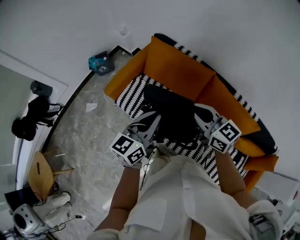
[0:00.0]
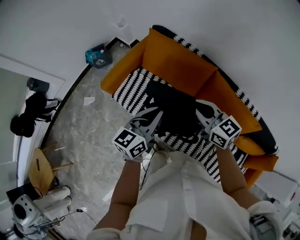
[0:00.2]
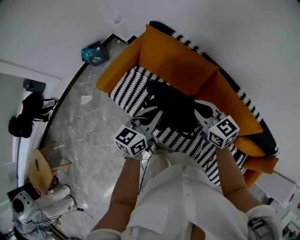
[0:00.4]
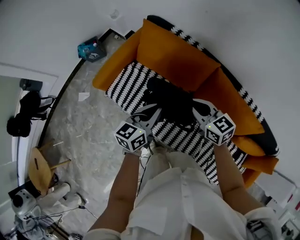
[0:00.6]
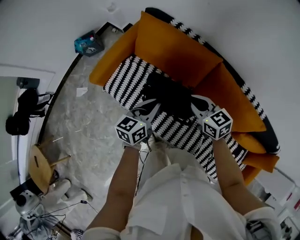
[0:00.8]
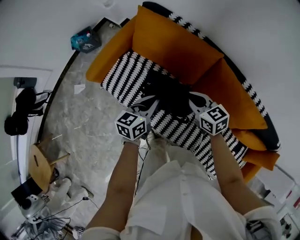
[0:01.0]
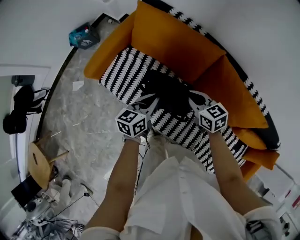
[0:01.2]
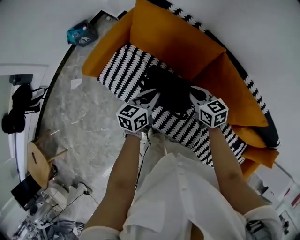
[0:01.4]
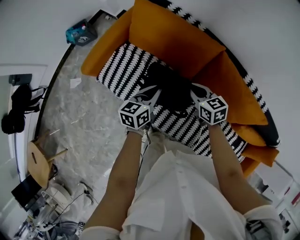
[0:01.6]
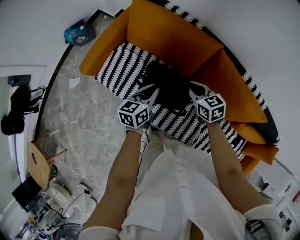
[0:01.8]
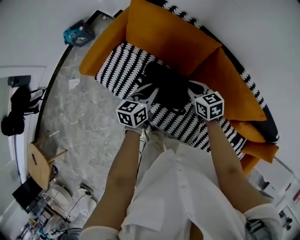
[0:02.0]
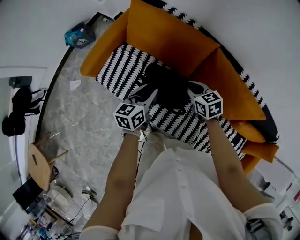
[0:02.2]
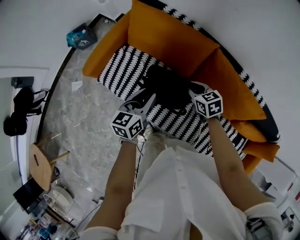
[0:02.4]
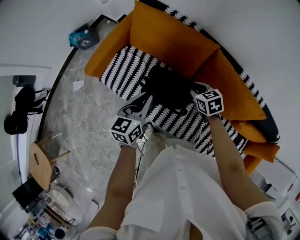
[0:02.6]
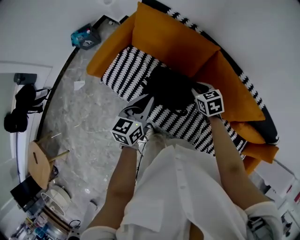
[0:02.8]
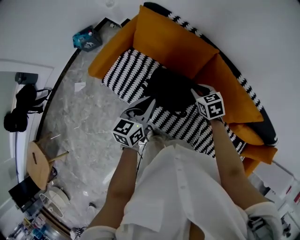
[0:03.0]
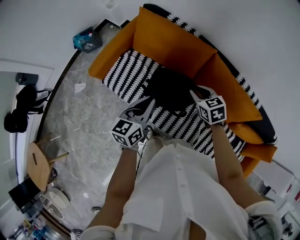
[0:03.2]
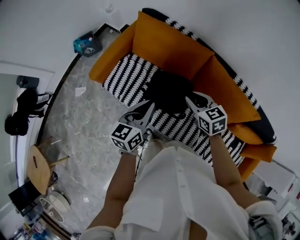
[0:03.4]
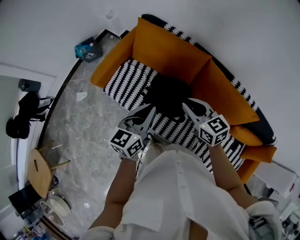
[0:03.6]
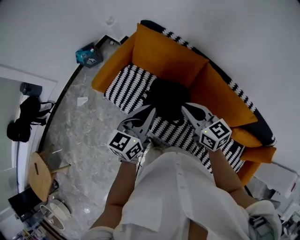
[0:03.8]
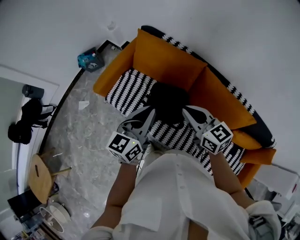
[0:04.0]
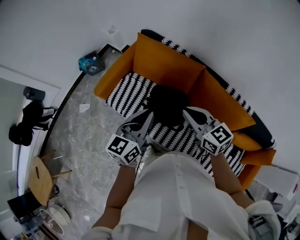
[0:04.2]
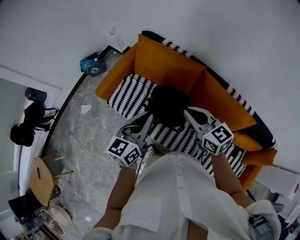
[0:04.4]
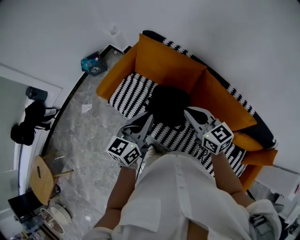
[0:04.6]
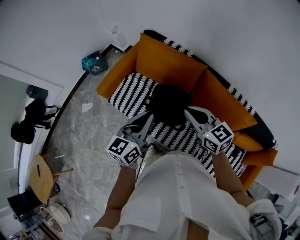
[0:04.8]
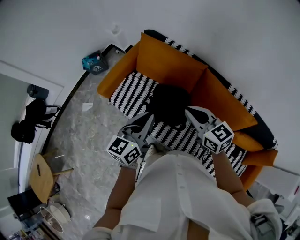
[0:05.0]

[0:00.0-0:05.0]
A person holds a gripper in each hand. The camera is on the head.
0:00.0 to 0:01.6: The grippers both shift downward by roughly 25 cm. The left gripper swivels some 20 degrees, while the right gripper swivels about 30 degrees.
0:01.6 to 0:03.4: The grippers both shift upward and backward by about 15 cm. The left gripper opens and closes again.
0:03.4 to 0:05.0: Both grippers travel together upward, some 10 cm. The right gripper turns by approximately 20 degrees.

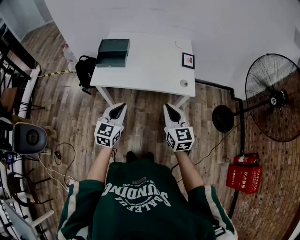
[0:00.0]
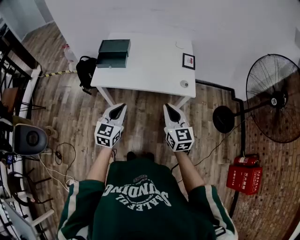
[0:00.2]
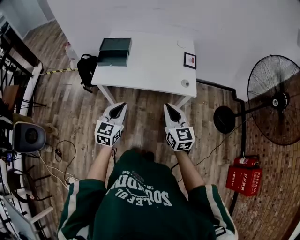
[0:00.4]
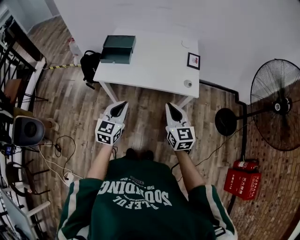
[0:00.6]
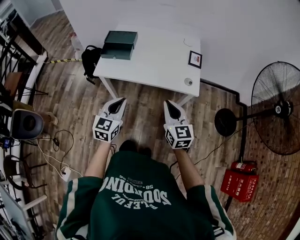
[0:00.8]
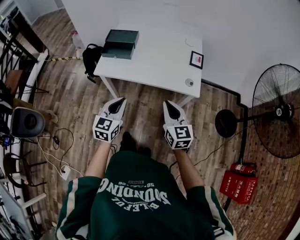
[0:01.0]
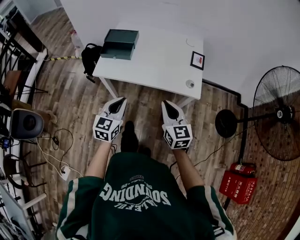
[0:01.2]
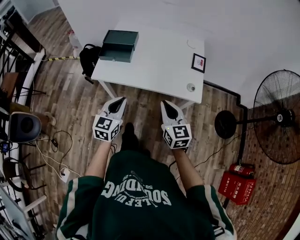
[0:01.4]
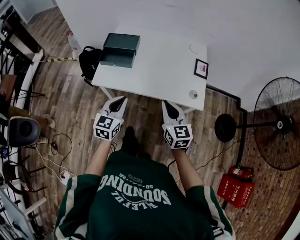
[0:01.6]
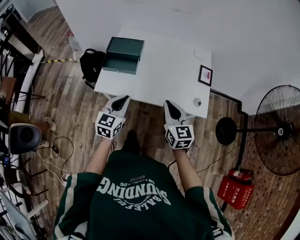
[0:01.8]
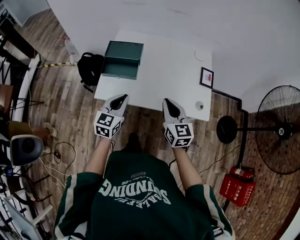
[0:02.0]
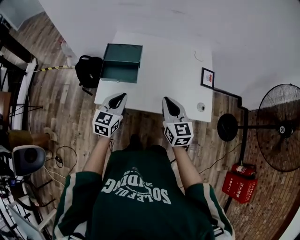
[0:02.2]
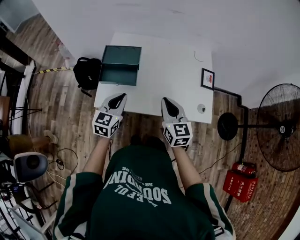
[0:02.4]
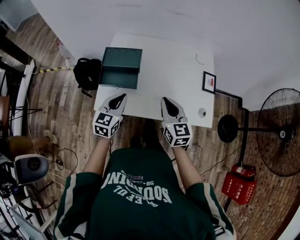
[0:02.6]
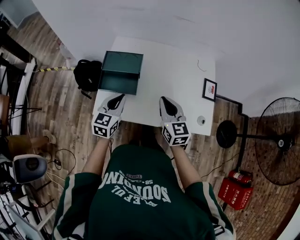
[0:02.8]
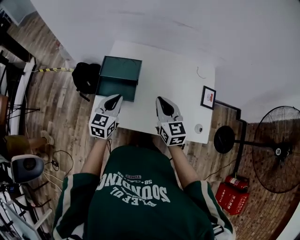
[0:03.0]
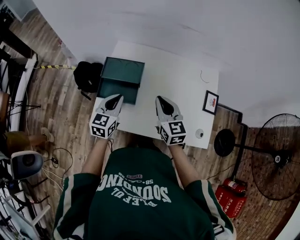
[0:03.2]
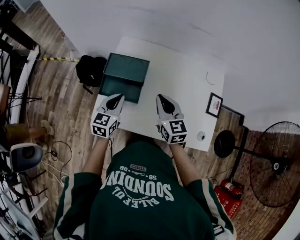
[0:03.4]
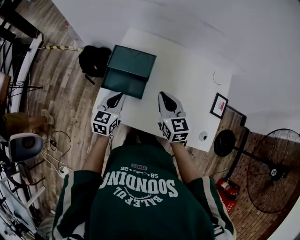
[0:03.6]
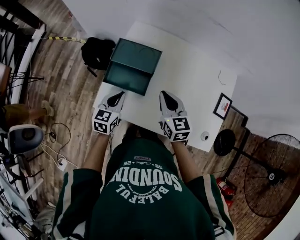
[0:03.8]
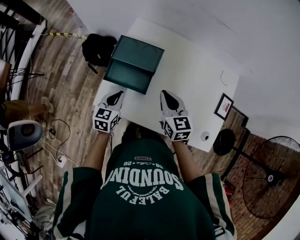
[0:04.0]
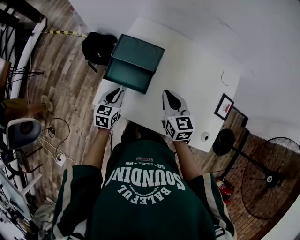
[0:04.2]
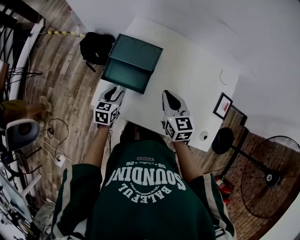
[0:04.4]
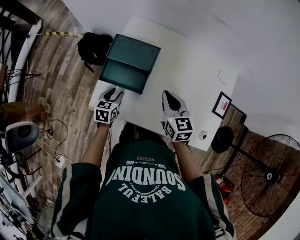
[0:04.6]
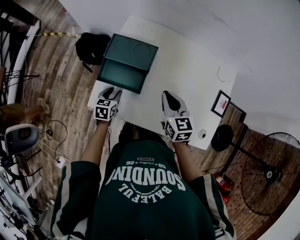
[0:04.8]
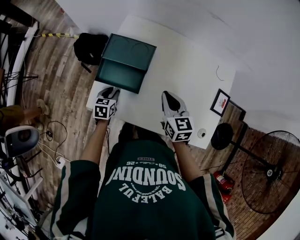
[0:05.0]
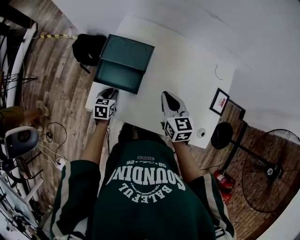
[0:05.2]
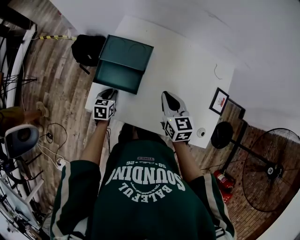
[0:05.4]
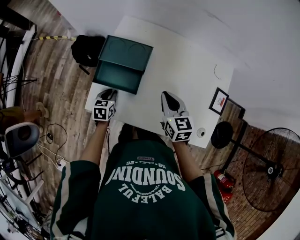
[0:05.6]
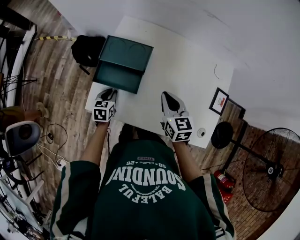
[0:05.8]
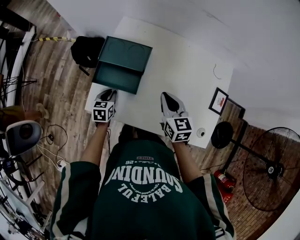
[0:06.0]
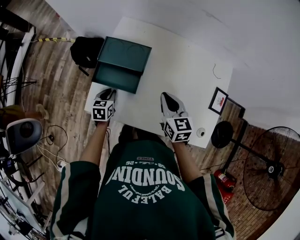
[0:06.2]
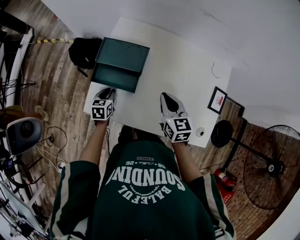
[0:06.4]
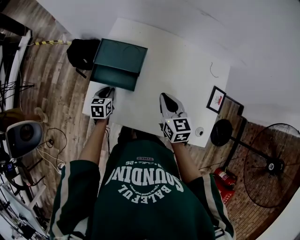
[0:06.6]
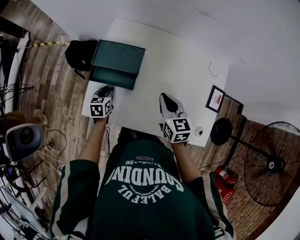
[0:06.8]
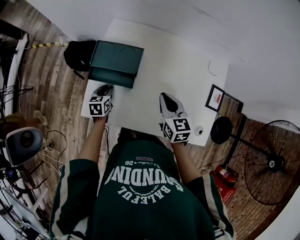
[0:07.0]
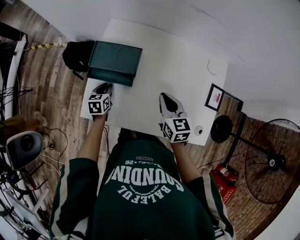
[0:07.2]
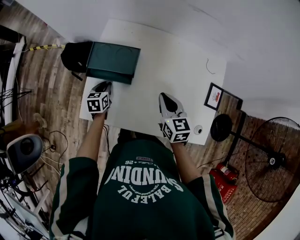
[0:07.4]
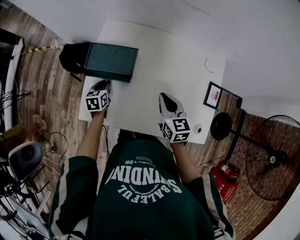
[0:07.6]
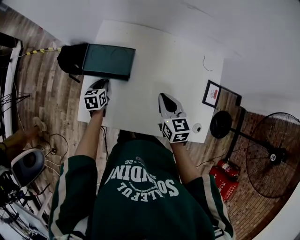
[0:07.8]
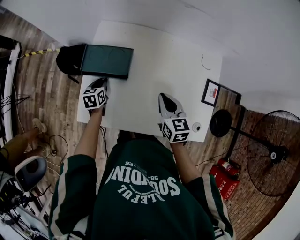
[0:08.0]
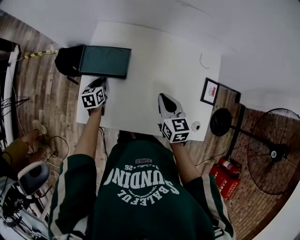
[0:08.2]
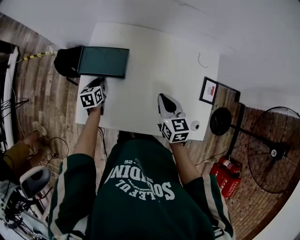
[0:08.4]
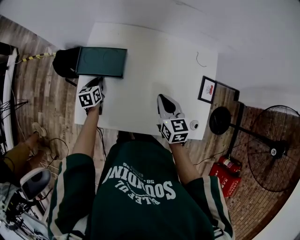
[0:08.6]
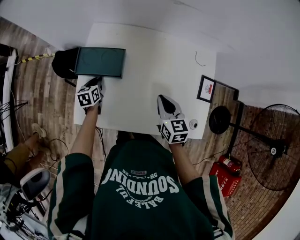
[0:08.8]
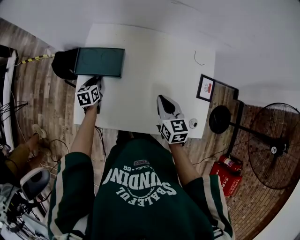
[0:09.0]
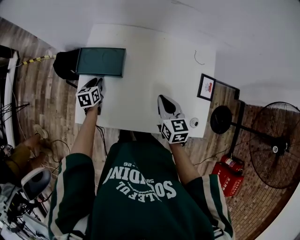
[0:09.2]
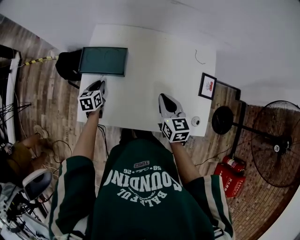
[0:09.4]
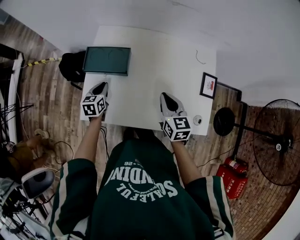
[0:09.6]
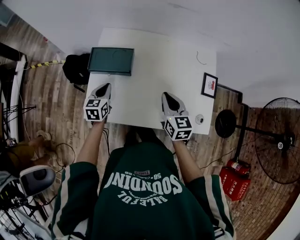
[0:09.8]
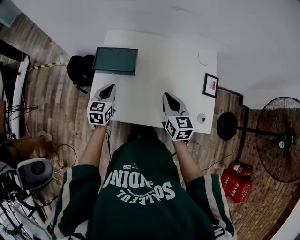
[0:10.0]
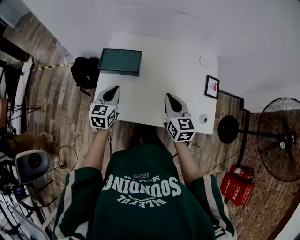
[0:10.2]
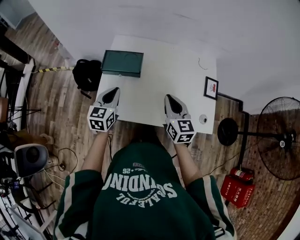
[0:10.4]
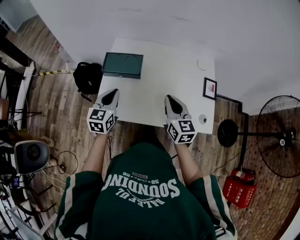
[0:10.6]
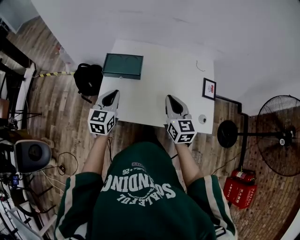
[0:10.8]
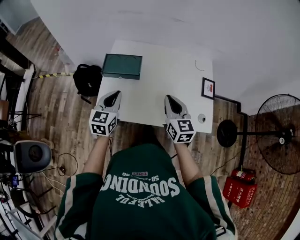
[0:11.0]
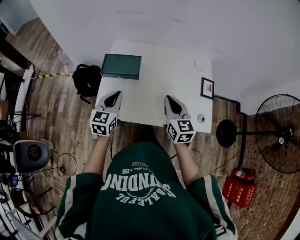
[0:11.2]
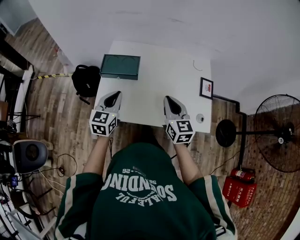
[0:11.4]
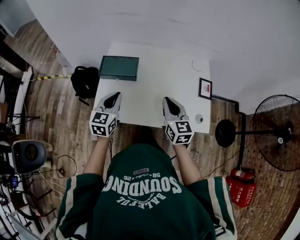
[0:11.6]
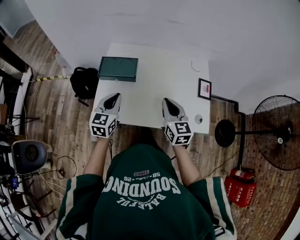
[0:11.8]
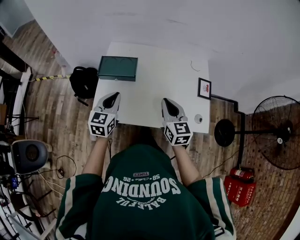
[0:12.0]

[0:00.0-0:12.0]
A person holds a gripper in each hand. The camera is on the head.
0:00.0 to 0:01.6: The two grippers go roughly 10 cm forward.
0:01.6 to 0:03.0: Both grippers travel together forward, about 25 cm.
0:03.0 to 0:04.4: The left gripper is displaced downward by approximately 15 cm, swivels about 30 degrees, and opens its fingers, while the right gripper moves downward and forward, roughly 10 cm.
0:04.4 to 0:06.0: There are only small adjustments of the grippers.
0:06.0 to 0:07.6: The left gripper heads forward, covering approximately 10 cm.
0:07.6 to 0:09.0: The grippers stay close to where they were, moving slightly.
0:09.0 to 0:10.4: The left gripper shifts roughly 25 cm upward and backward, and rotates roughly 30 degrees. The right gripper shifts about 15 cm upward, backward and to the left.
0:10.4 to 0:12.0: There are only small adjustments of the grippers.

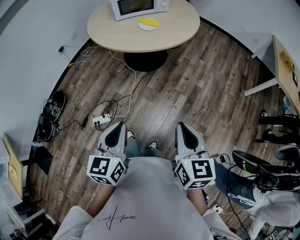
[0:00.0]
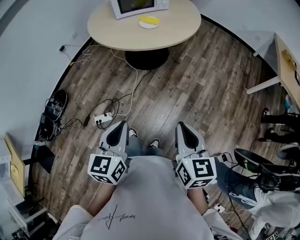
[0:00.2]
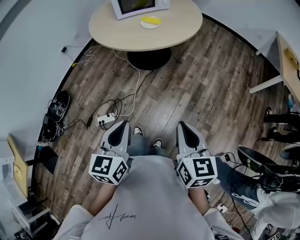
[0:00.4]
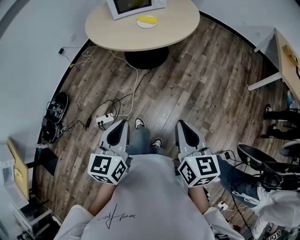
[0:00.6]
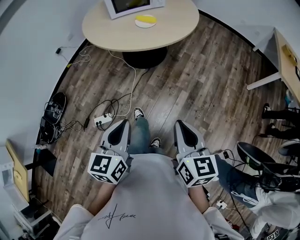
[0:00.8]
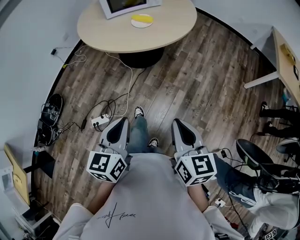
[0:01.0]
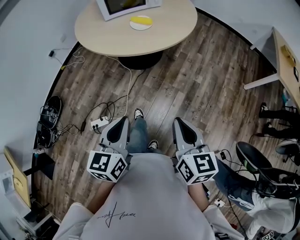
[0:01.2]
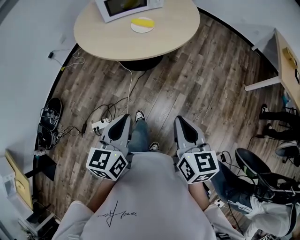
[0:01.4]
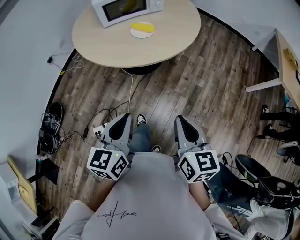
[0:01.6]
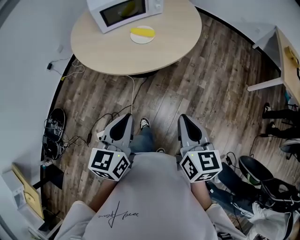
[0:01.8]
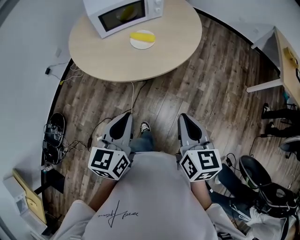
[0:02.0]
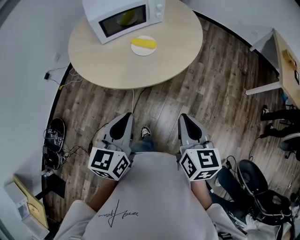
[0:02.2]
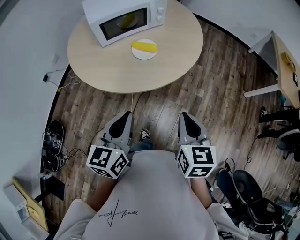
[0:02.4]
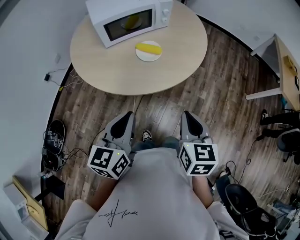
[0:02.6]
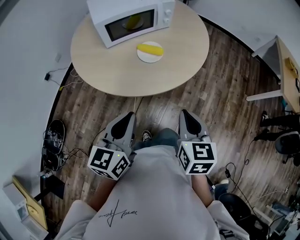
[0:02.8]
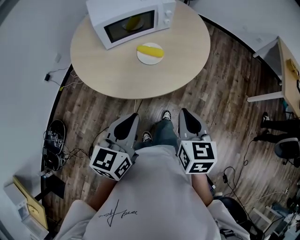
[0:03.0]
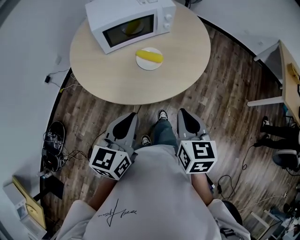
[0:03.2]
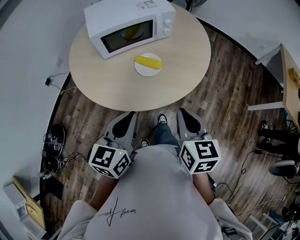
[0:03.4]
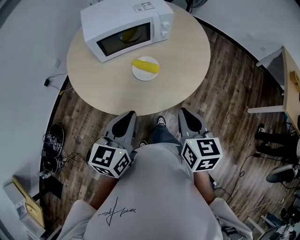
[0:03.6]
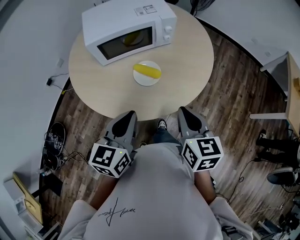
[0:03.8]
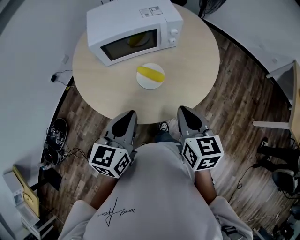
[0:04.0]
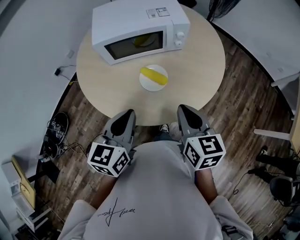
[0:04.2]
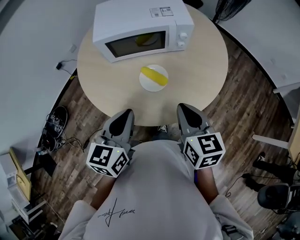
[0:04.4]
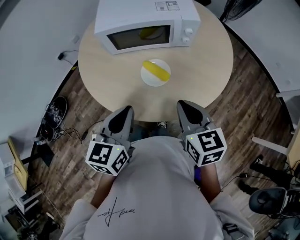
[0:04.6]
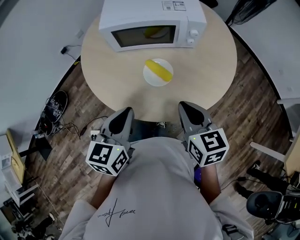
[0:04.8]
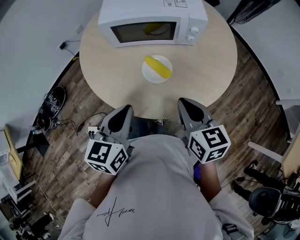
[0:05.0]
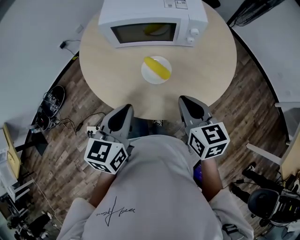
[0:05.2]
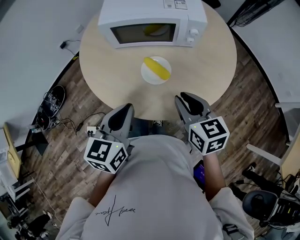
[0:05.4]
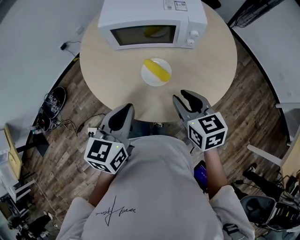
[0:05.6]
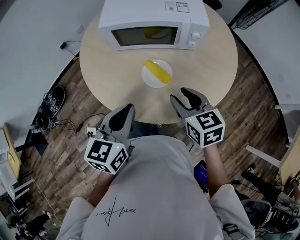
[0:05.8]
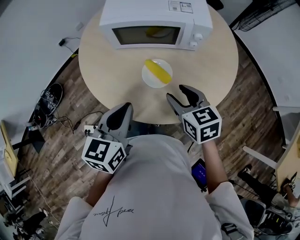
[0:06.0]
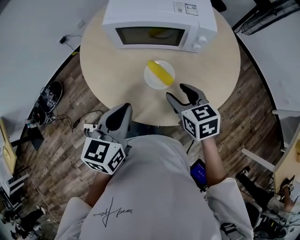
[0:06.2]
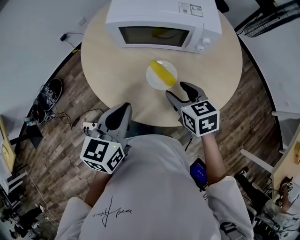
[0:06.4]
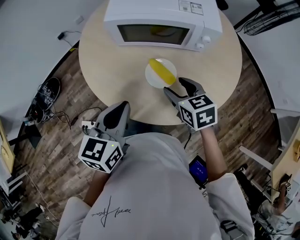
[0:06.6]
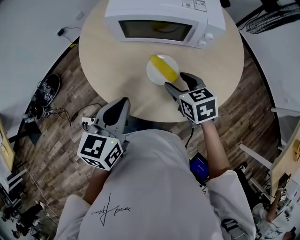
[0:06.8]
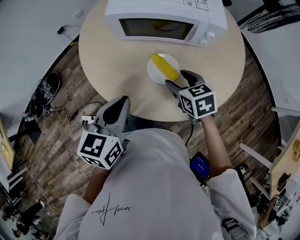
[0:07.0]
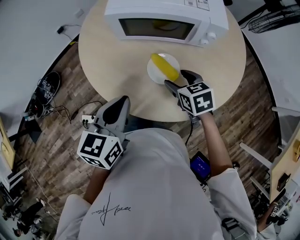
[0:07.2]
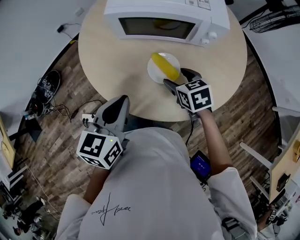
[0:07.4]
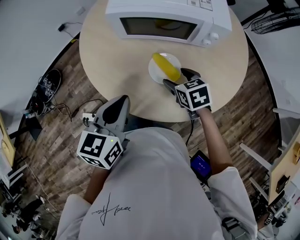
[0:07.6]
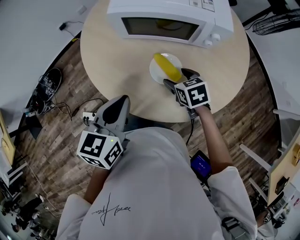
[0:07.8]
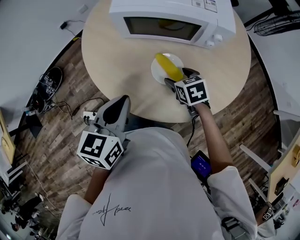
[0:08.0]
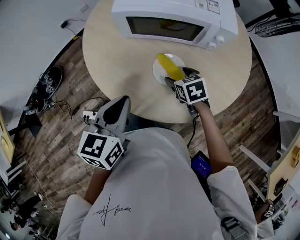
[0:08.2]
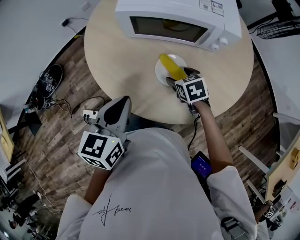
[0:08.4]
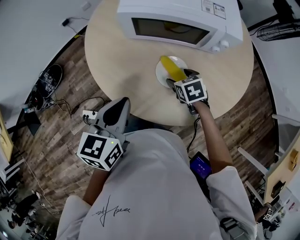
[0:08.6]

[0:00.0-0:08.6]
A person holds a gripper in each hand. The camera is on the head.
0:00.0 to 0:01.4: Both grippers travel together forward, roughly 15 cm.
0:01.4 to 0:02.8: Both grippers travel together forward, approximately 25 cm.
0:02.8 to 0:04.4: Both grippers move forward, roughly 20 cm. The right gripper swivels approximately 30 degrees.
0:04.4 to 0:05.8: The right gripper travels forward and downward by some 10 cm, changes its angle by some 20 degrees, and opens up.
0:05.8 to 0:07.2: The right gripper is displaced downward and forward by roughly 10 cm, and opens its fingers; the left gripper ends up approximately 5 cm from where it was.
0:07.2 to 0:08.6: The right gripper shifts about 10 cm downward.
